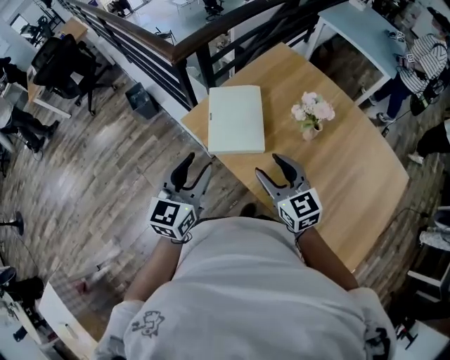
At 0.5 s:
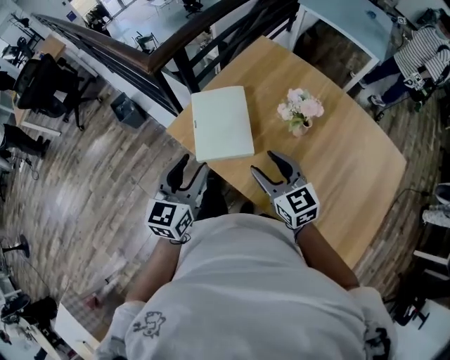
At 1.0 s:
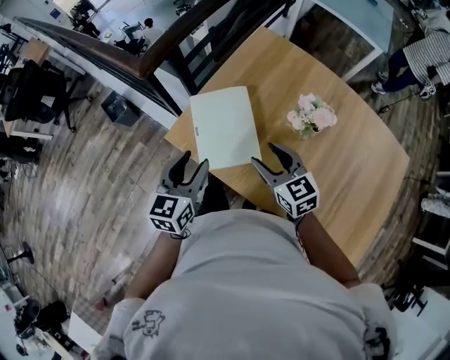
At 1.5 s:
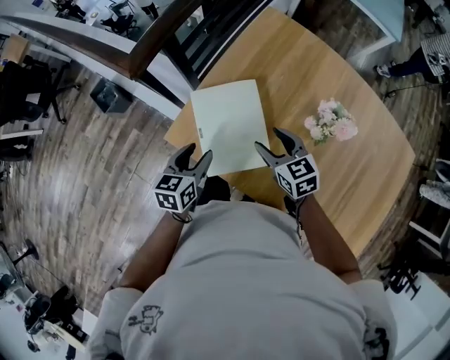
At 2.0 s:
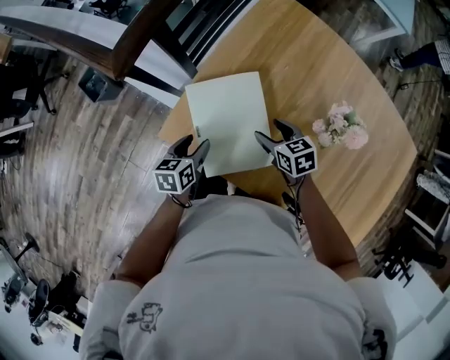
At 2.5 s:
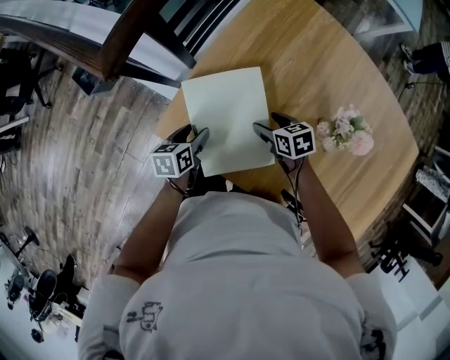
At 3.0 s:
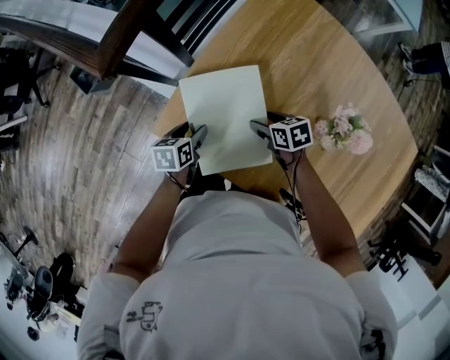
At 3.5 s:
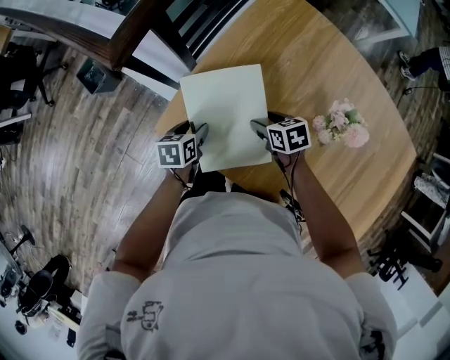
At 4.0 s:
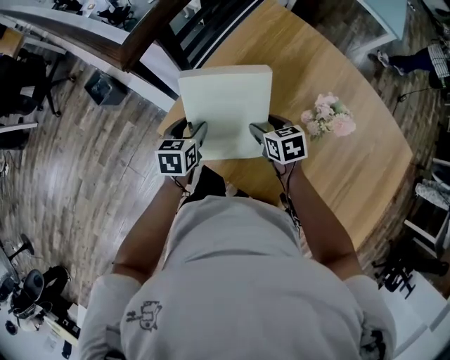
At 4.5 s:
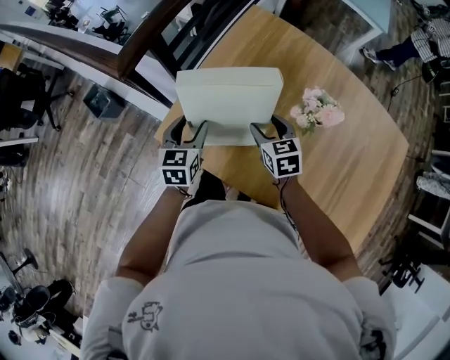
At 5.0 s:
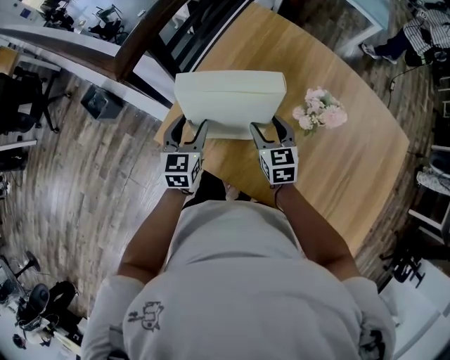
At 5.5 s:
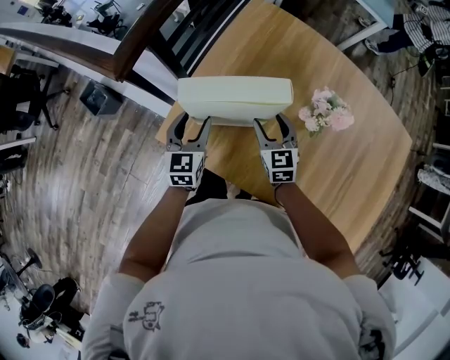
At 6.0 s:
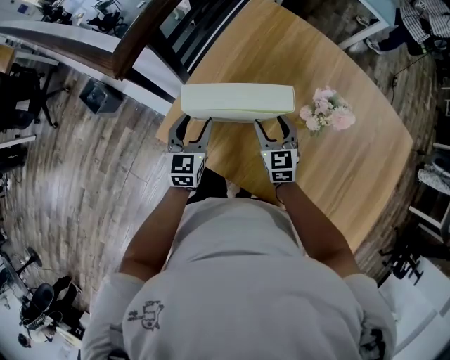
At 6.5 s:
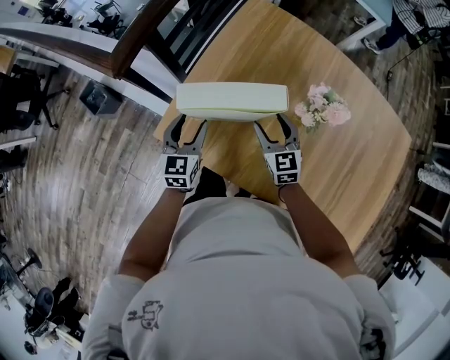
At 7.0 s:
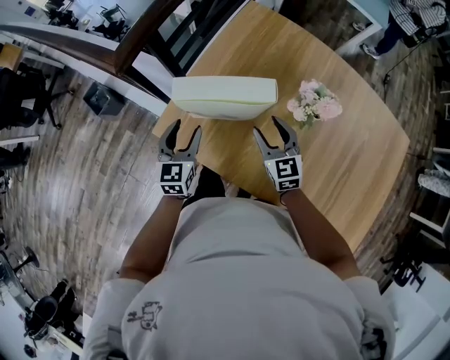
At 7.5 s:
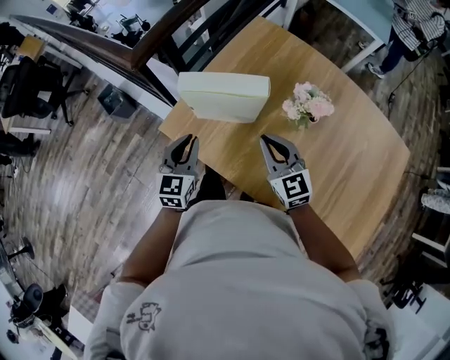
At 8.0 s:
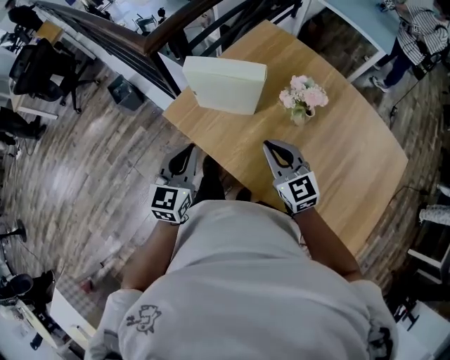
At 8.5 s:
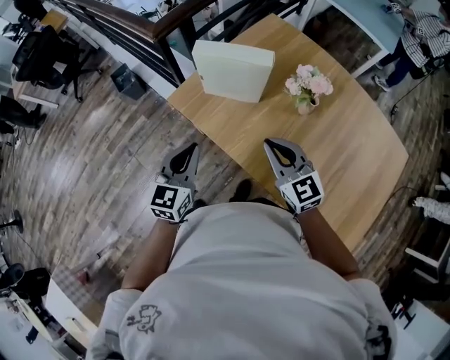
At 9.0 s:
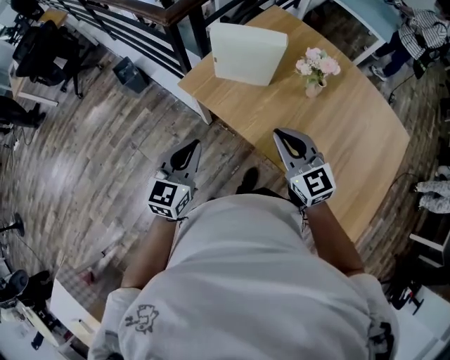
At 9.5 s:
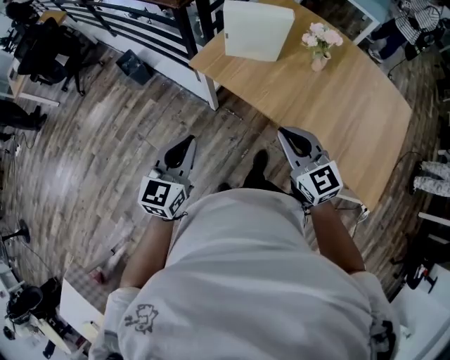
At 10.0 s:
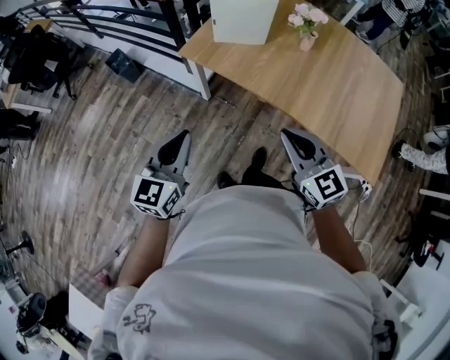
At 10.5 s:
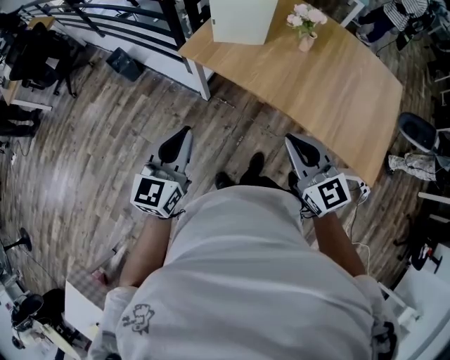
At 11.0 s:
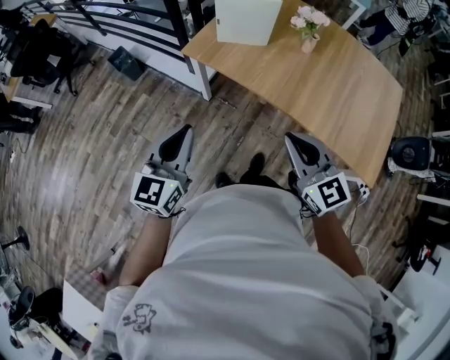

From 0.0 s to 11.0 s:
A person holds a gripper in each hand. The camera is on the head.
From 0.0 s to 2.0 s: The left gripper is displaced downward and forward by some 35 cm, and points its fingers roughly 30 degrees further downward. The right gripper travels forward and downward by roughly 35 cm, and points its fingers about 30 degrees further downward.
From 3.5 s to 5.5 s: Both grippers move upward, about 10 cm. The right gripper rotates some 50 degrees. The left gripper rotates roughly 40 degrees.
From 5.5 s to 7.5 s: Both grippers travel together backward and upward, about 15 cm. The left gripper closes. The right gripper turns by about 20 degrees, and closes up.
From 7.5 s to 9.0 s: The two grippers go approximately 20 cm backward.
From 9.0 s to 11.0 s: The left gripper heads backward and to the left, covering roughly 15 cm. The right gripper shifts approximately 20 cm backward.

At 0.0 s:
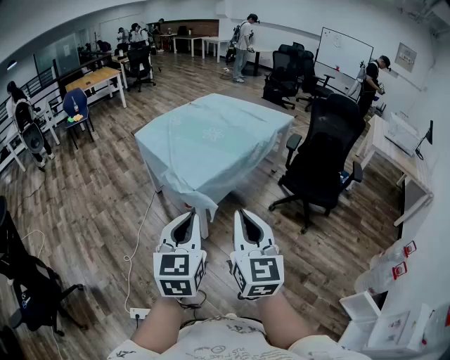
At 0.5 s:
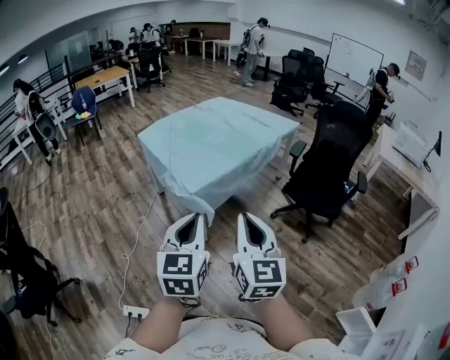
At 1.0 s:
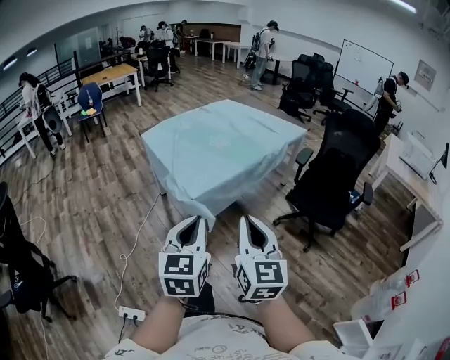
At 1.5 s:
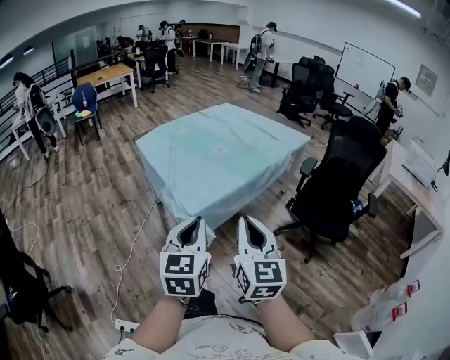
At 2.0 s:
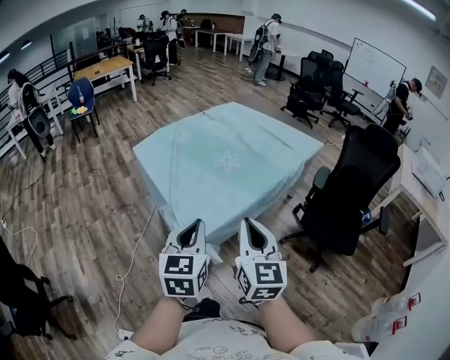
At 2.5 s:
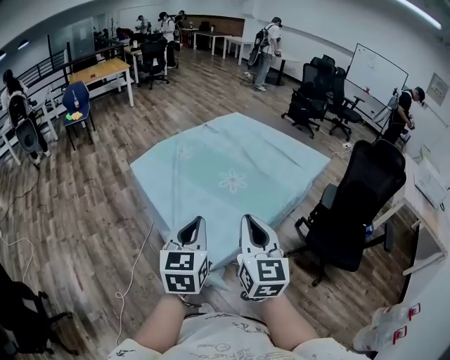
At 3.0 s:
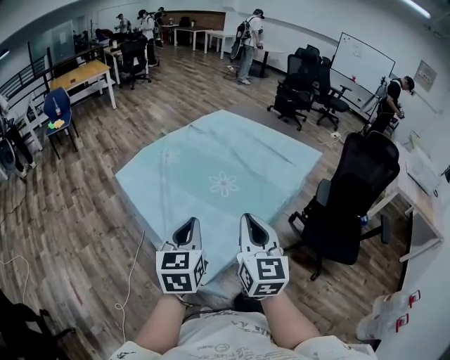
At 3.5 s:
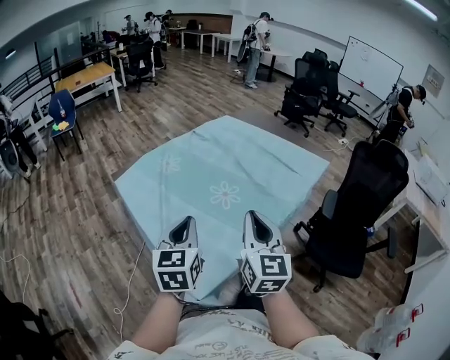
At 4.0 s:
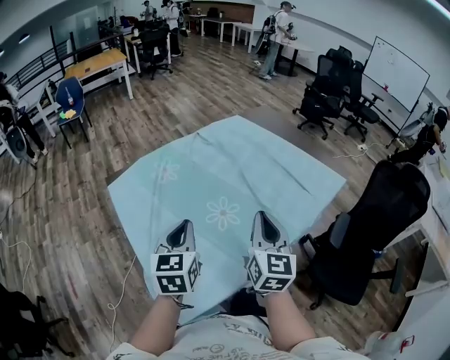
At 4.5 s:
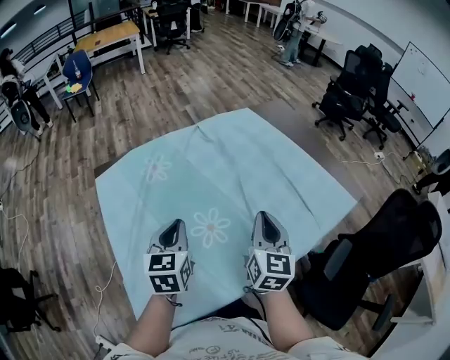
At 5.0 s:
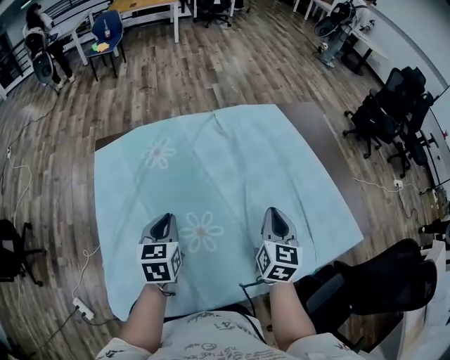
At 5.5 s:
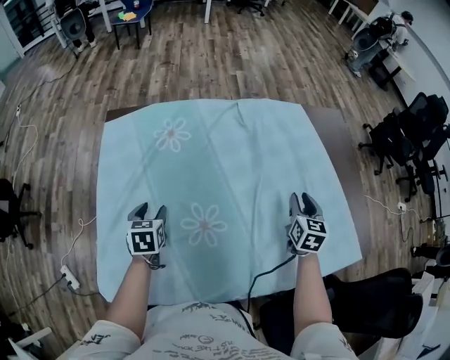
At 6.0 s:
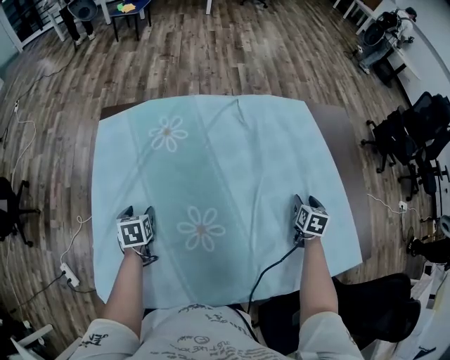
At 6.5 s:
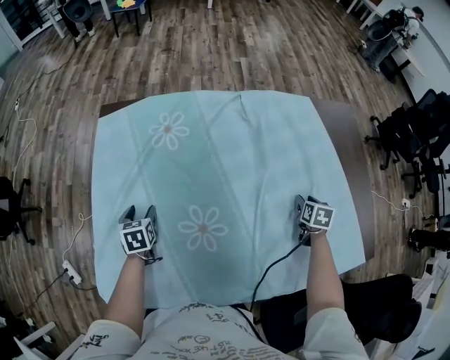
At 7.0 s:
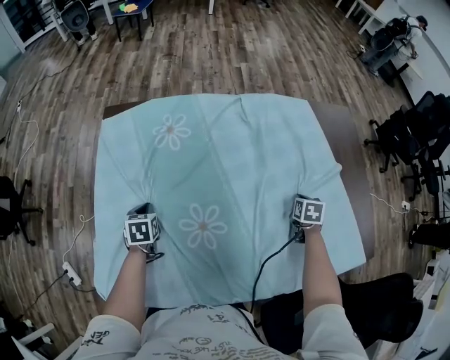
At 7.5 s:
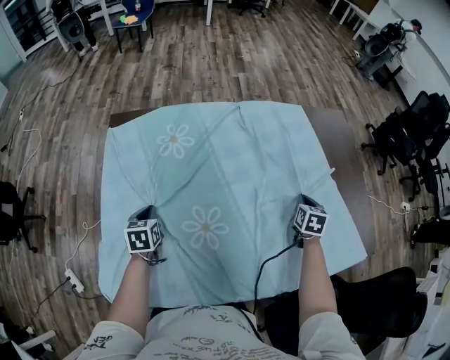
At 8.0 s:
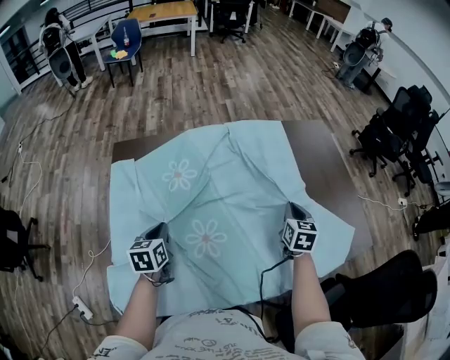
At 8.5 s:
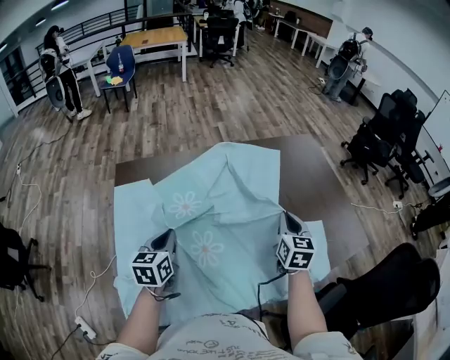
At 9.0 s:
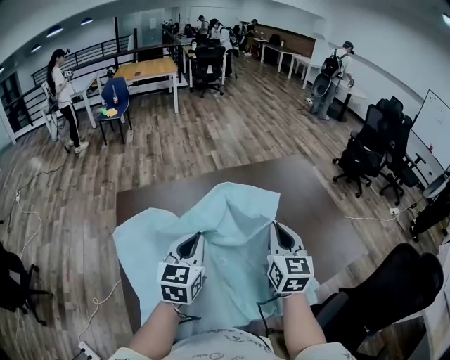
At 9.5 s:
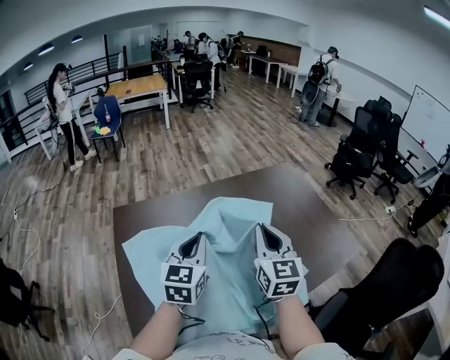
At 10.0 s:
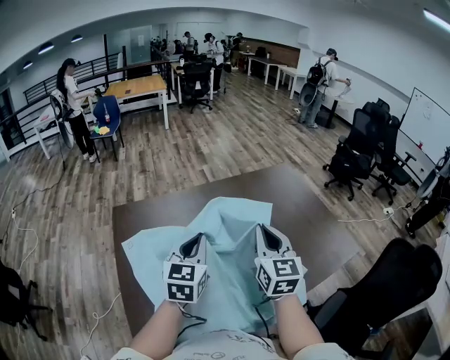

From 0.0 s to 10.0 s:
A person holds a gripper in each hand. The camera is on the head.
From 0.0 s to 2.0 s: The grippers both shift forward by roughly 30 cm.
From 2.0 s to 4.0 s: The two grippers go roughly 40 cm forward.
From 4.0 s to 6.0 s: The left gripper travels downward by about 30 cm, tilts its fingers about 40 degrees downward, and opens its fingers; the right gripper ends up some 60 cm from where it was, tips its fingers downward by some 40 degrees, and opens up.
From 6.0 s to 8.0 s: The right gripper moves upward, to the left and backward, roughly 15 cm, and closes up. The left gripper moves upward and to the right, some 15 cm, swivels some 20 degrees, and closes its fingers.
From 8.0 s to 10.0 s: The left gripper is displaced upward and to the right by some 30 cm, and rotates about 40 degrees, while the right gripper is displaced upward and backward by roughly 25 cm, and swivels about 30 degrees.

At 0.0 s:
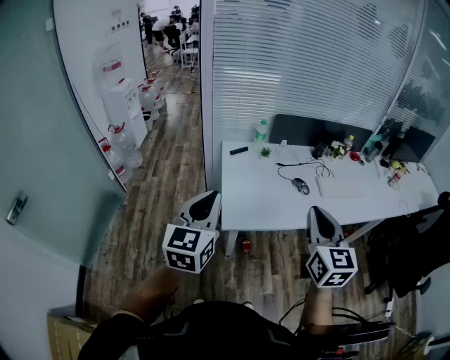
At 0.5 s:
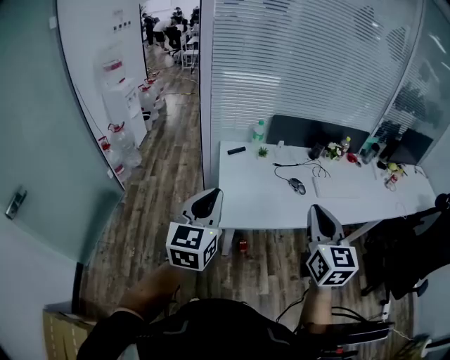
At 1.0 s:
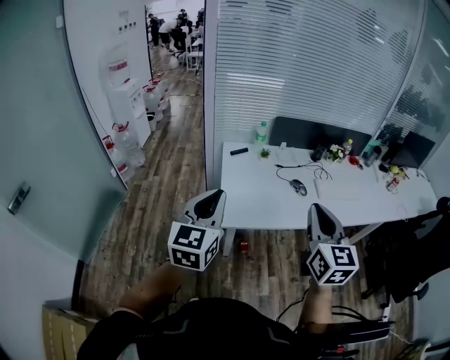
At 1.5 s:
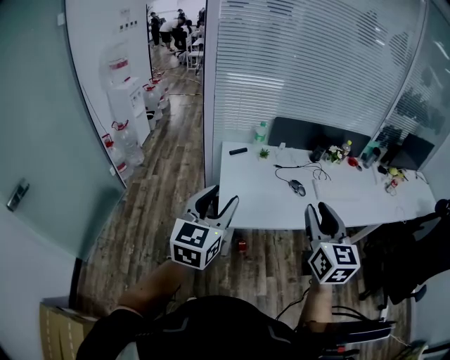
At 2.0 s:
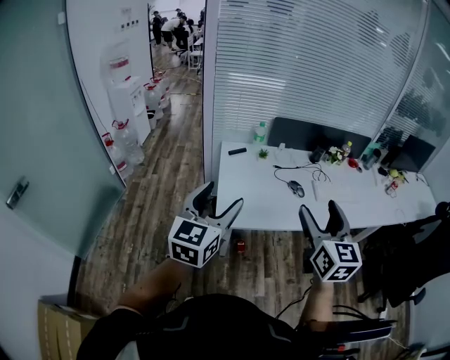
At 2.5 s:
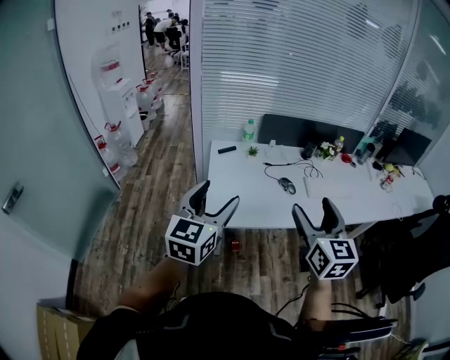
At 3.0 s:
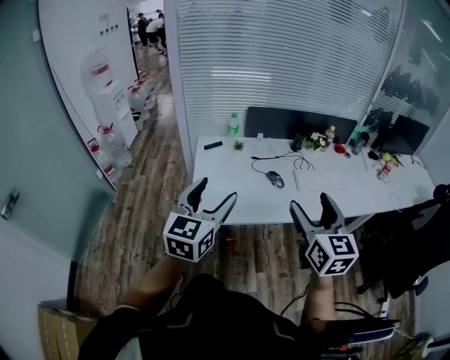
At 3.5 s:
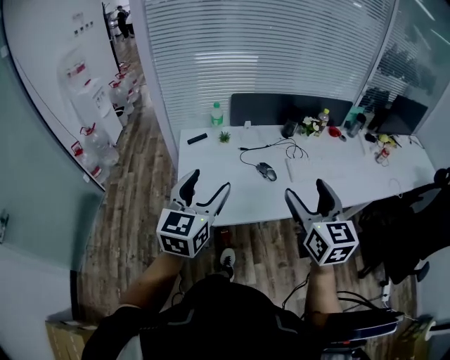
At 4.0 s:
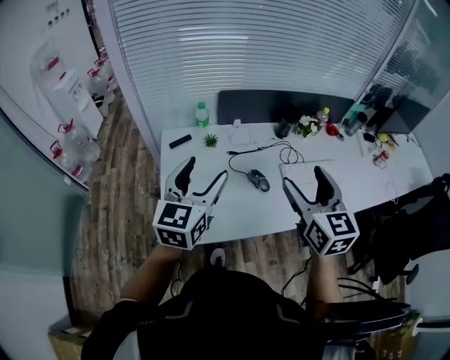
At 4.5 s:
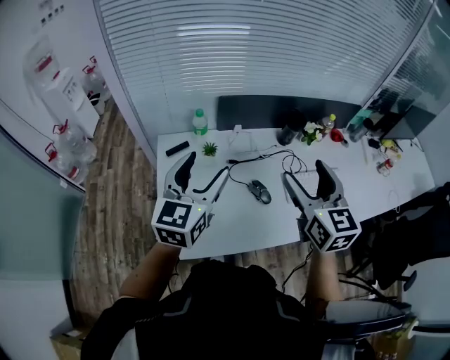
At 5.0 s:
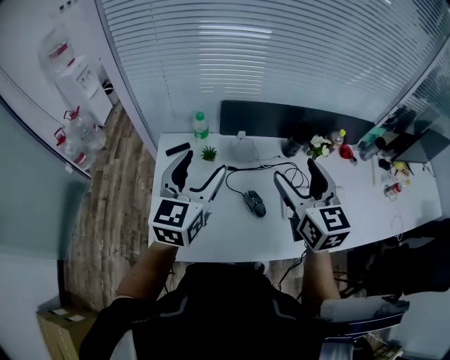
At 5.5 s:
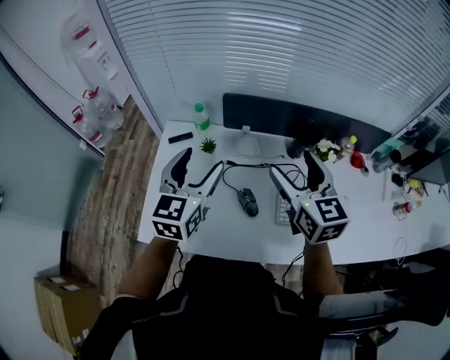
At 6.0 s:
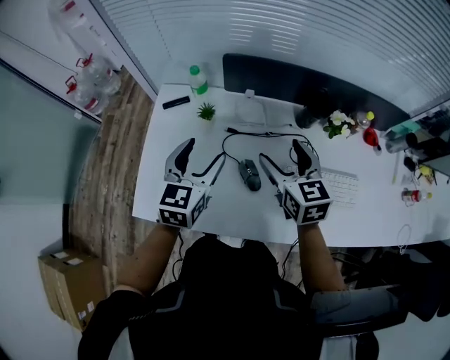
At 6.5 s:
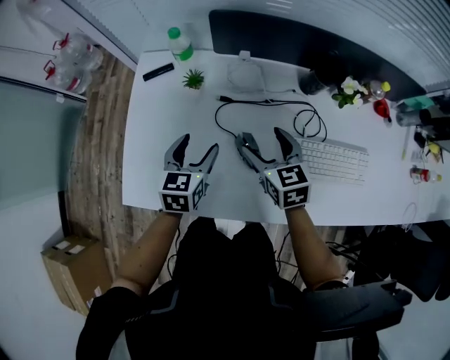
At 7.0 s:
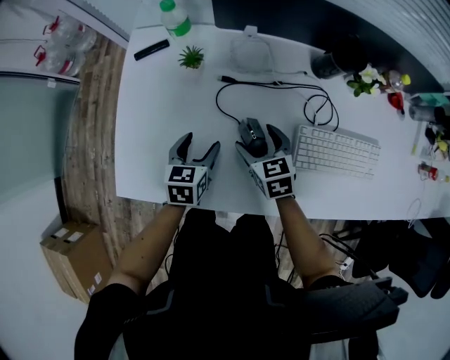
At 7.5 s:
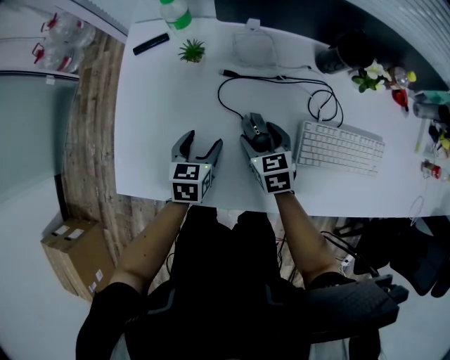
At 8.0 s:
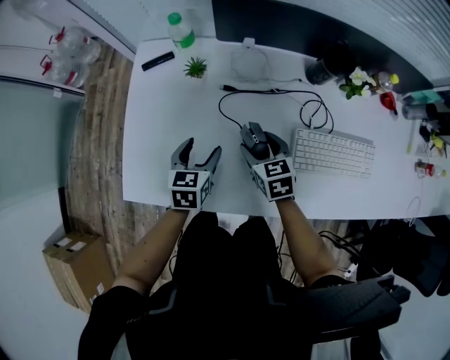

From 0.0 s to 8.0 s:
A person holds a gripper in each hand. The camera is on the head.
From 0.0 s to 2.0 s: The left gripper opens its fingers; the right gripper opens its fingers.
From 2.0 s to 4.0 s: Both grippers travel together forward and to the right, about 30 cm.
From 4.0 s to 6.0 s: The right gripper is displaced forward and downward by some 25 cm, and changes its angle by approximately 30 degrees, while the left gripper shifts about 20 cm downward, forward and to the right, and changes its angle by about 20 degrees.
From 6.0 s to 8.0 s: The two grippers go approximately 20 cm downward. The left gripper changes its angle by approximately 20 degrees.
